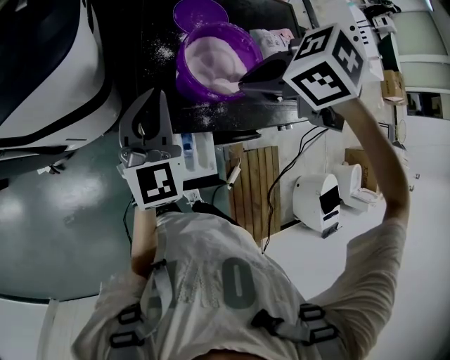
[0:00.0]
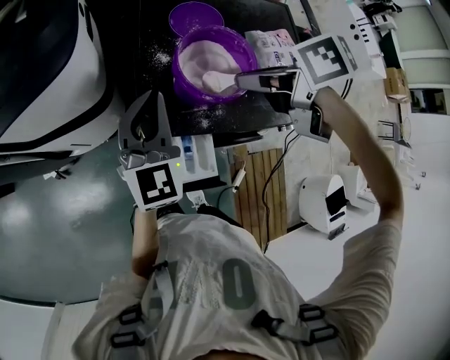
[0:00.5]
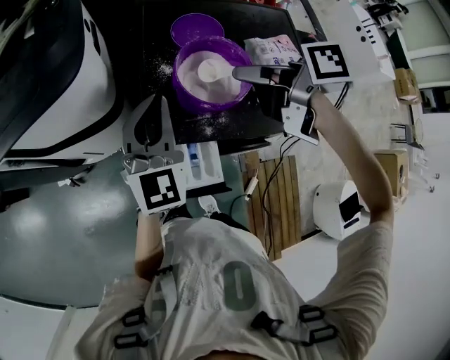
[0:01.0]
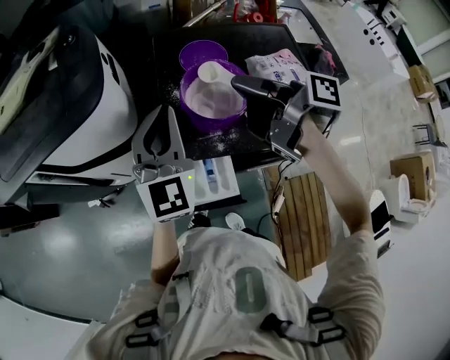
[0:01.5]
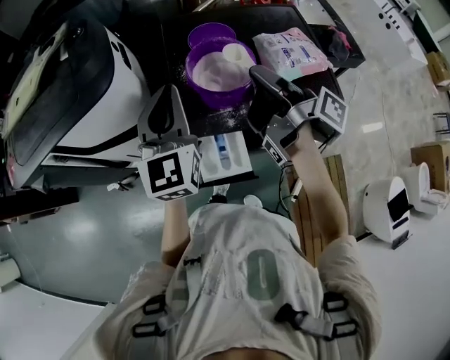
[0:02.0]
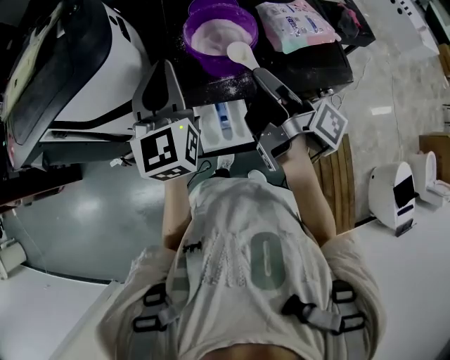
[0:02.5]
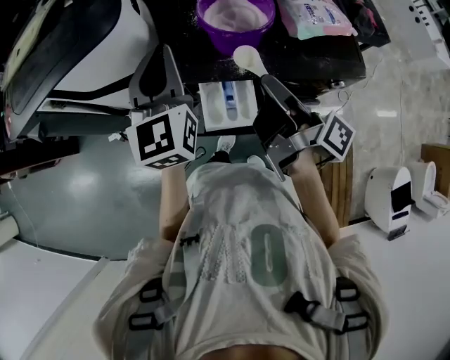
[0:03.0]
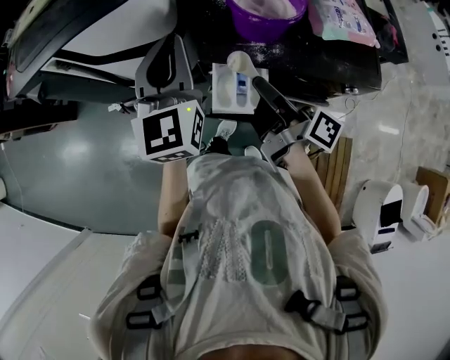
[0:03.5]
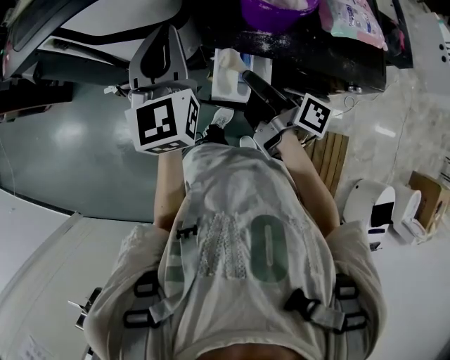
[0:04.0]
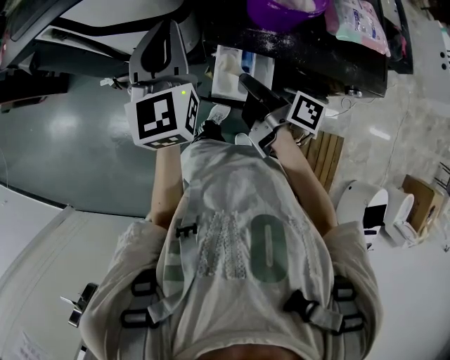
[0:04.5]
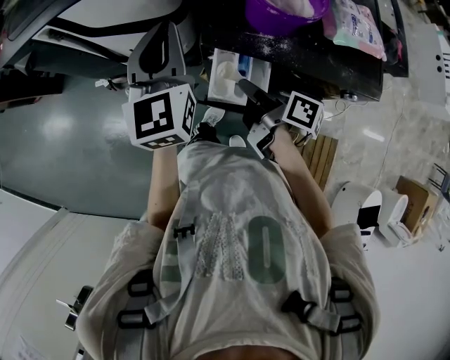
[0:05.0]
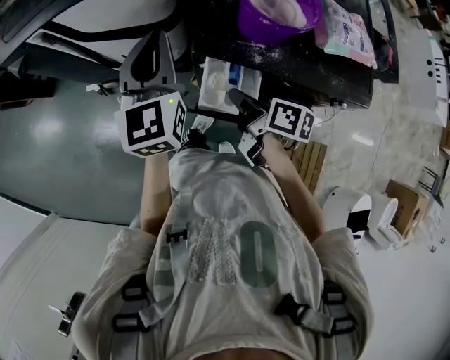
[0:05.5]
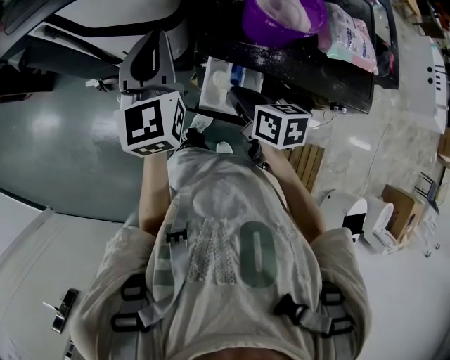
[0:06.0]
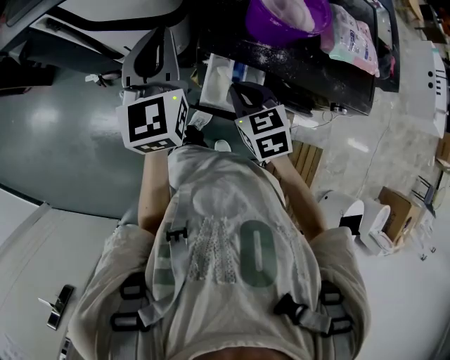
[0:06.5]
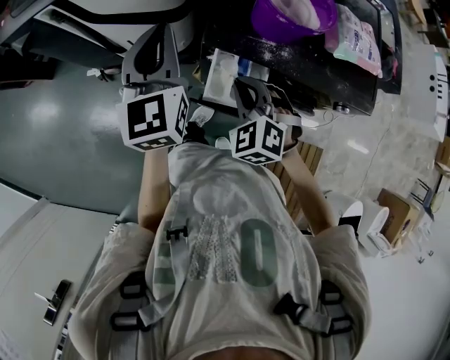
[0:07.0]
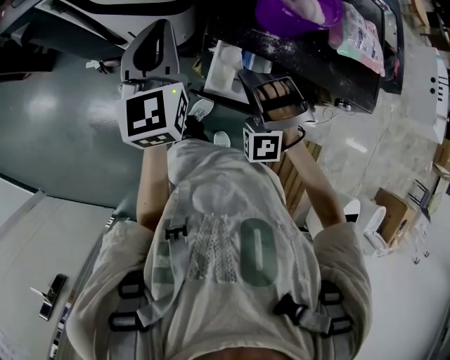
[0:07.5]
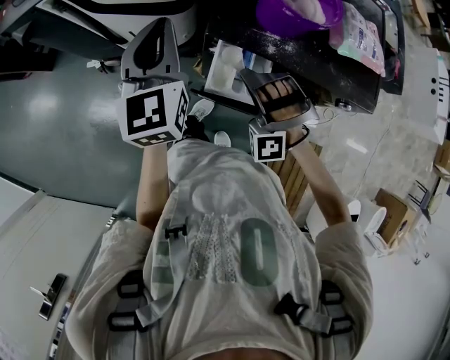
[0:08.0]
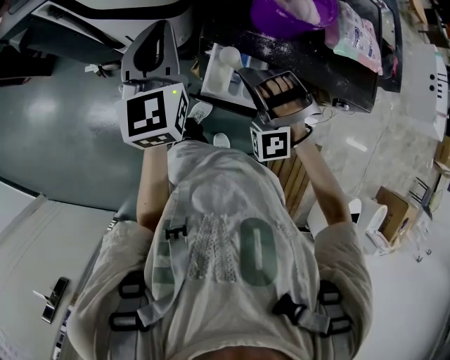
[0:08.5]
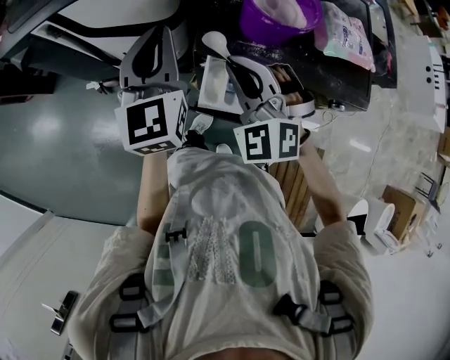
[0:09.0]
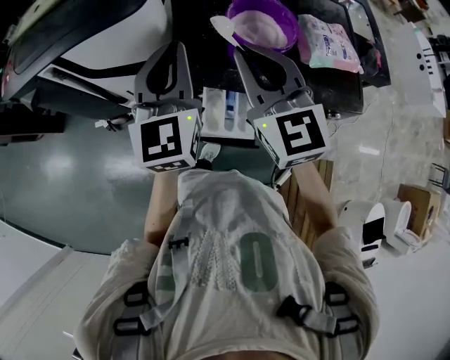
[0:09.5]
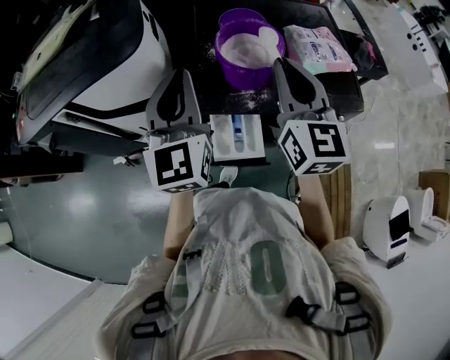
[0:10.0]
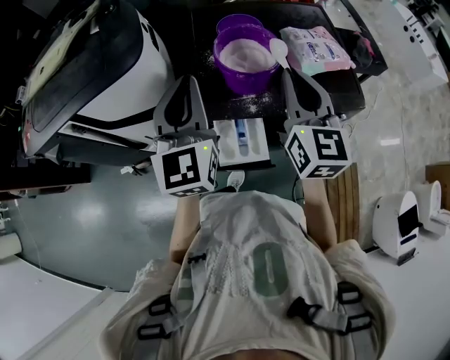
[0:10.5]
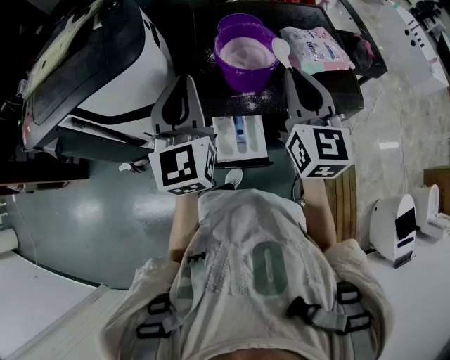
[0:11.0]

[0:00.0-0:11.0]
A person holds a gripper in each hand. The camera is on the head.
0:00.0 to 0:02.0: The left gripper goes roughly 10 cm upward. Meanwhile the right gripper moves some 10 cm, and angles its fingers upward, by approximately 70 degrees.
0:02.0 to 0:03.5: The left gripper shifts roughly 10 cm to the left and backward. The right gripper goes about 20 cm downward, backward and to the left.
0:03.5 to 0:05.5: The right gripper goes about 10 cm downward, and turns by approximately 40 degrees; the left gripper ends up approximately 5 cm from where it was.
0:05.5 to 0:07.5: The right gripper twists some 150 degrees counterclockwise, seen from behind.
0:07.5 to 0:09.0: The right gripper travels upward by some 10 cm, and rotates some 40 degrees.
0:09.0 to 0:11.0: The left gripper is displaced to the right and upward by roughly 10 cm. Meanwhile the right gripper goes some 20 cm to the right and upward, and rolls clockwise, seen from behind, by approximately 60 degrees.

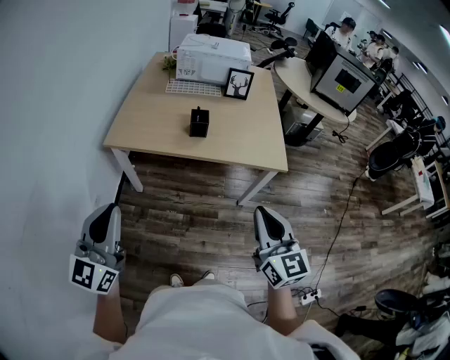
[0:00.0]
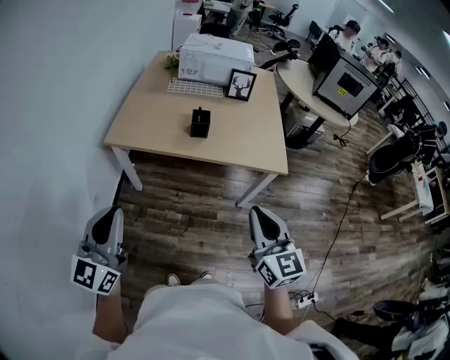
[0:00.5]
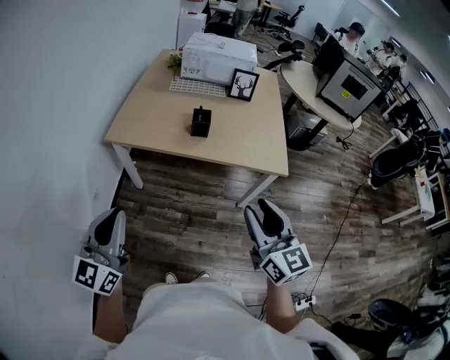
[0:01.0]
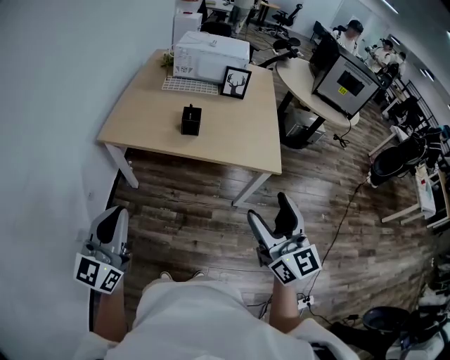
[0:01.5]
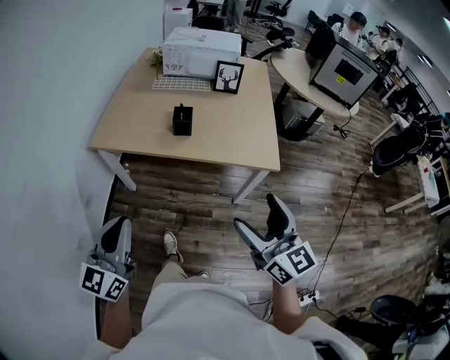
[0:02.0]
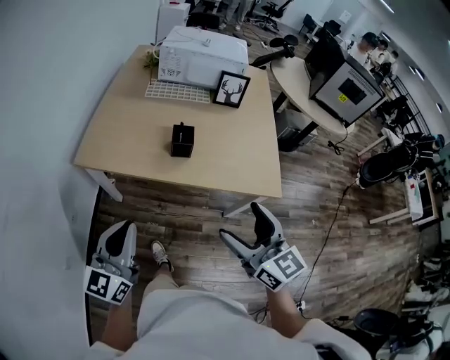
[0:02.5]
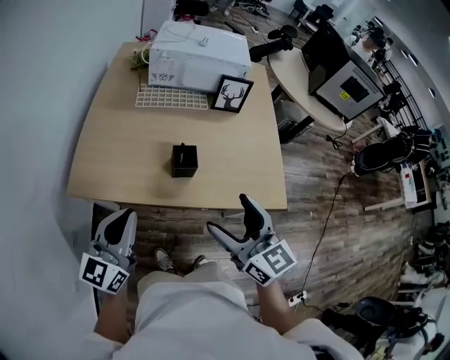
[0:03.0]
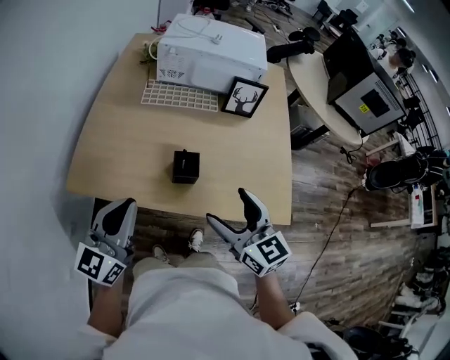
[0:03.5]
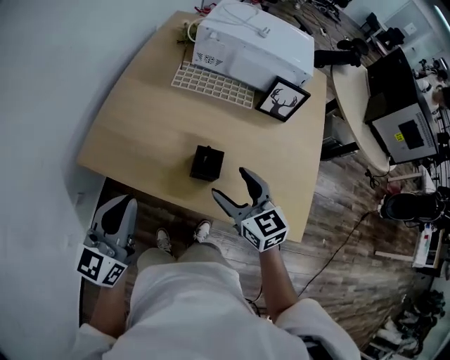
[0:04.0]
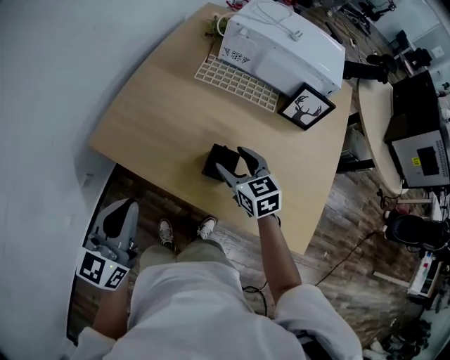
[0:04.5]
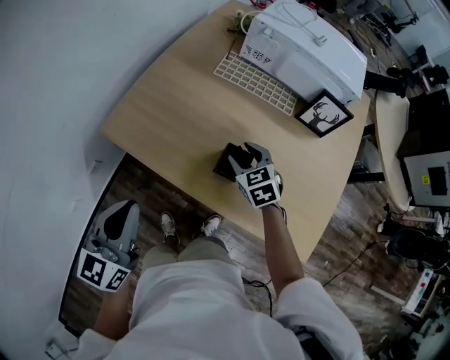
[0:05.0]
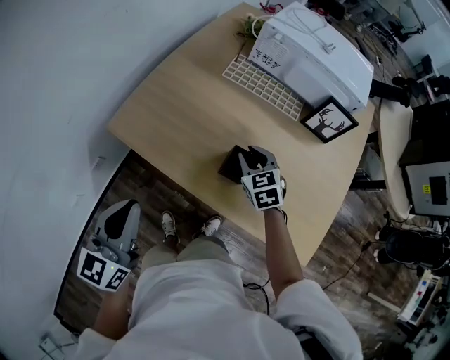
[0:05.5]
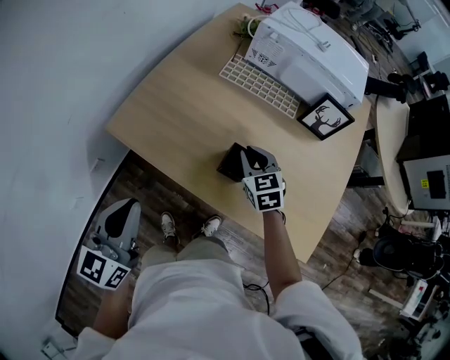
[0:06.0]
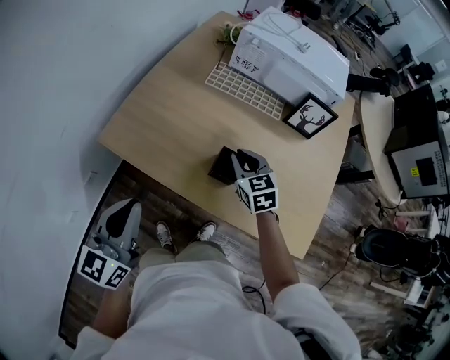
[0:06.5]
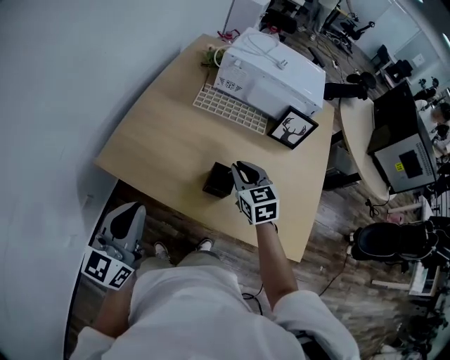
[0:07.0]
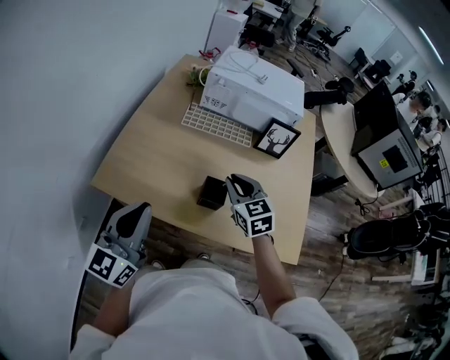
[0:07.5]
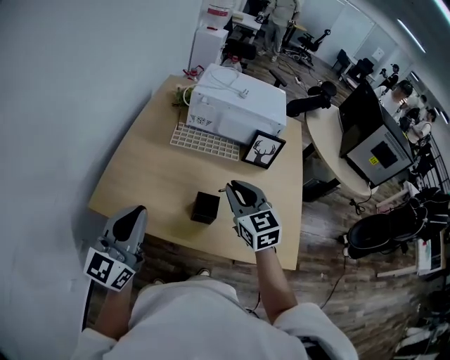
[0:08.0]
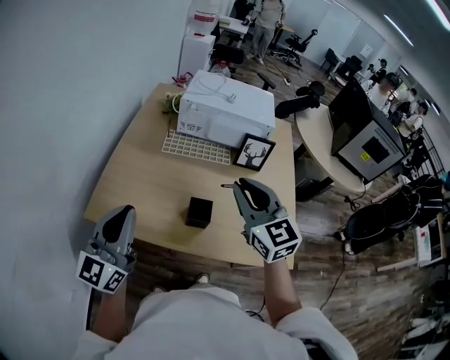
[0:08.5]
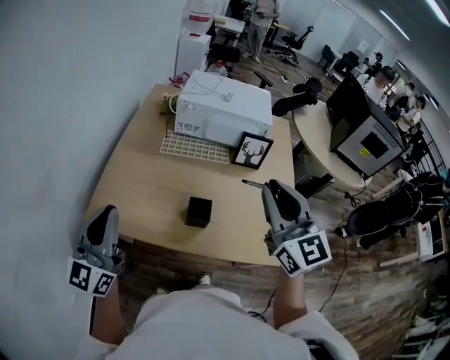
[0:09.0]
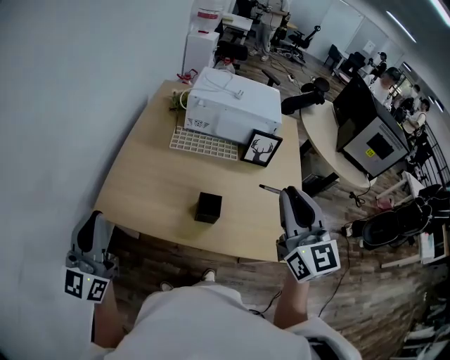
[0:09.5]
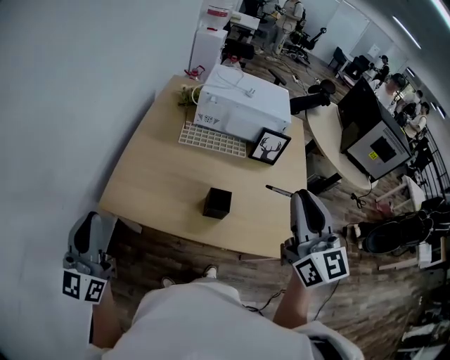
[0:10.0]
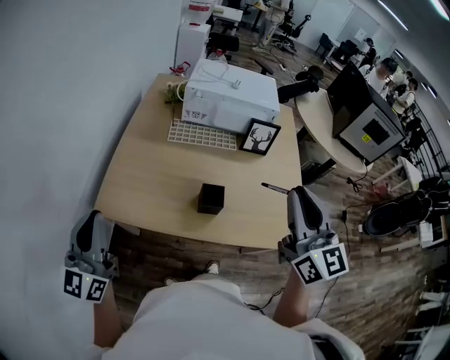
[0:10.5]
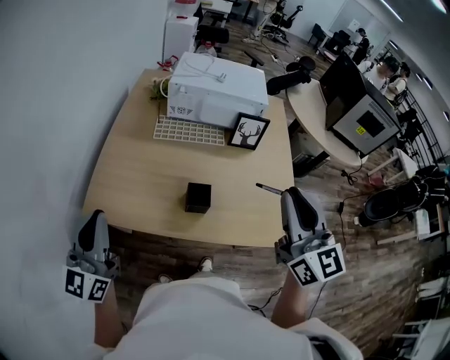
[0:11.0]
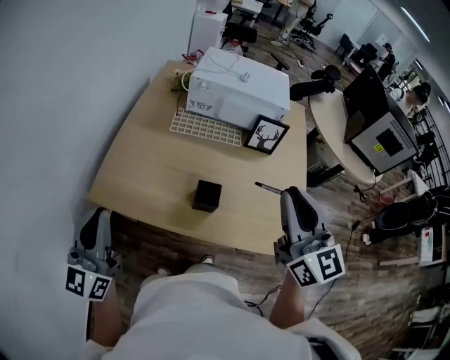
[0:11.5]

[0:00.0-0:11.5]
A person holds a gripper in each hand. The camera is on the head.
0:00.0 to 0:02.0: The right gripper moves to the right, about 5 cm, and opens its fingers; the left gripper moves to the right and downward, some 10 cm.
0:02.0 to 0:04.0: Both grippers travel together forward, approximately 40 cm. The right gripper turns by some 30 degrees.
0:04.0 to 0:06.0: The right gripper shifts about 15 cm forward and downward, and closes up. The left gripper changes place by some 5 cm.
0:06.0 to 0:07.5: The right gripper travels upward by about 10 cm. Meanwhile the left gripper moves upward, about 5 cm, and swivels approximately 20 degrees.
0:07.5 to 0:09.5: The right gripper heads upward and backward, covering approximately 25 cm, and turns by approximately 30 degrees. Meanwhile the left gripper goes roughly 15 cm to the left and upward.
0:09.5 to 0:11.5: The grippers stay close to where they were, moving slightly.

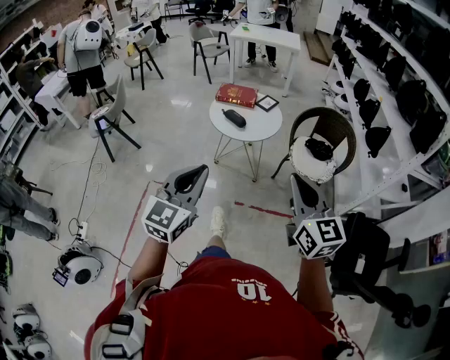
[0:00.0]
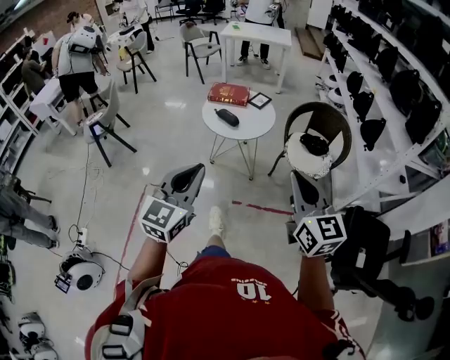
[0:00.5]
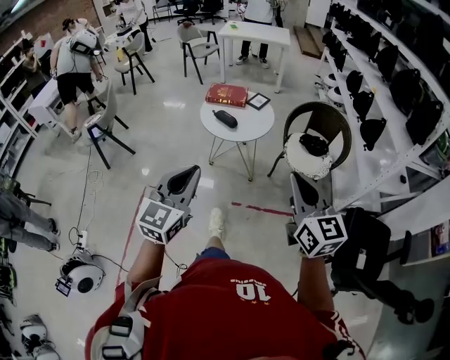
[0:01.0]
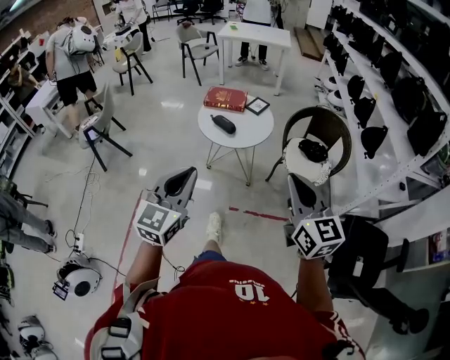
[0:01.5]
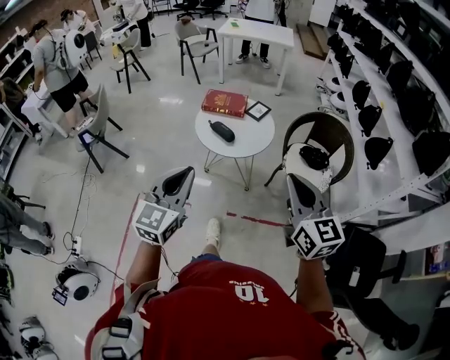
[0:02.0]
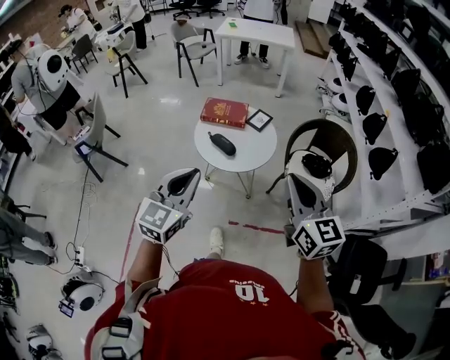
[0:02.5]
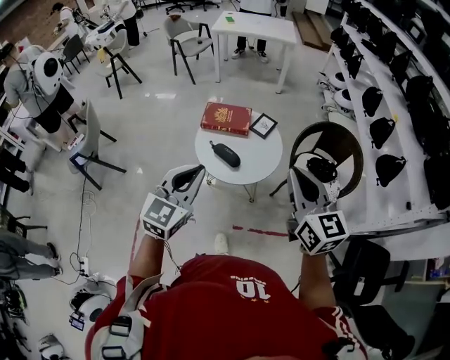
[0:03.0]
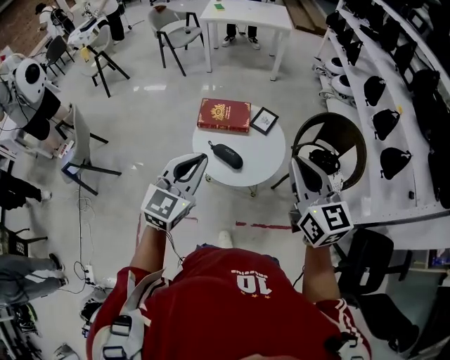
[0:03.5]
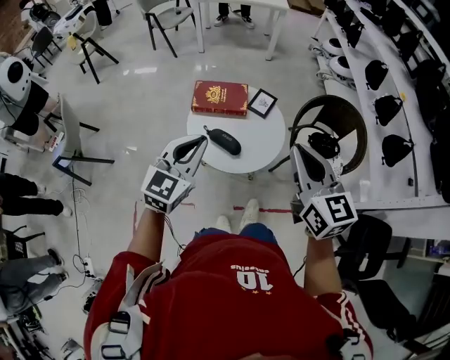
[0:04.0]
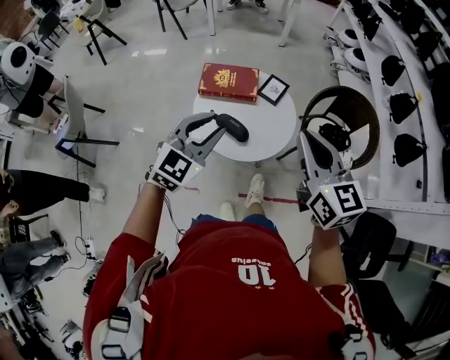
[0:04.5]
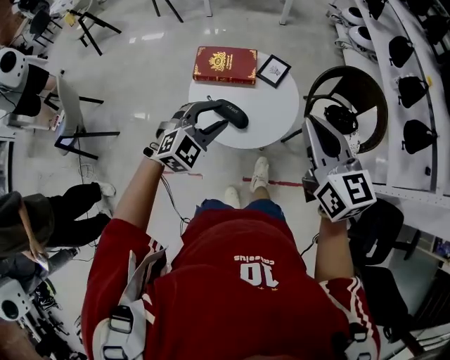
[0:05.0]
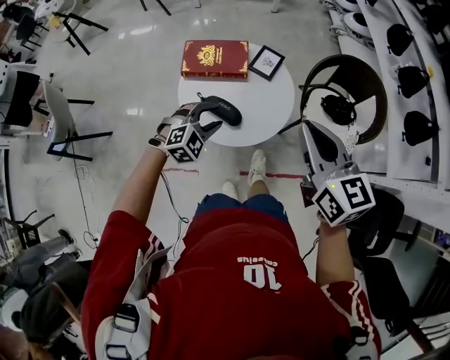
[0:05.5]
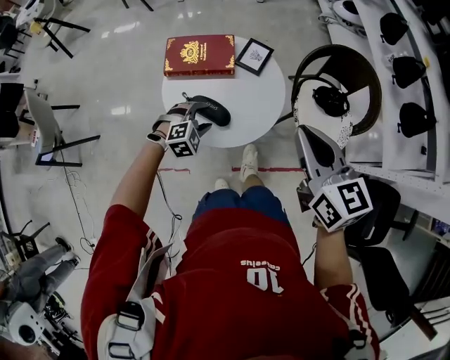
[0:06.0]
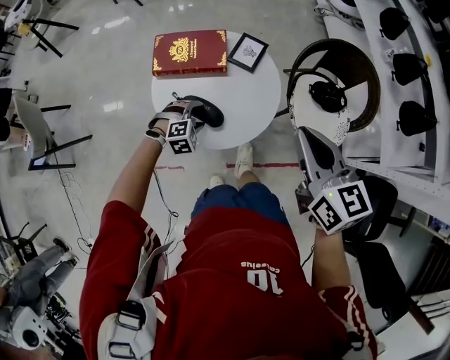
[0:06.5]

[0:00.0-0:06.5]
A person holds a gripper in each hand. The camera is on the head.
0:00.0 to 0:02.0: The two grippers go some 15 cm forward.
0:02.0 to 0:04.5: Both grippers travel together forward, roughly 35 cm. The left gripper rotates some 30 degrees.
0:04.5 to 0:06.5: The right gripper goes approximately 15 cm downward, forward and to the right. Meanwhile the left gripper goes approximately 35 cm downward, tilts its fingers about 50 degrees downward, and opens its fingers.
